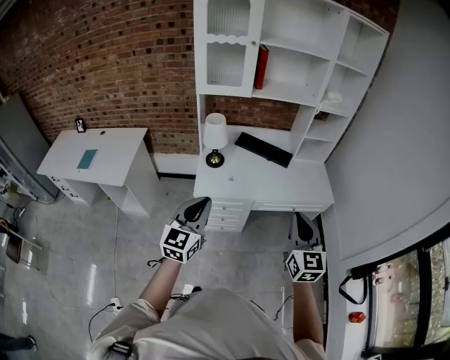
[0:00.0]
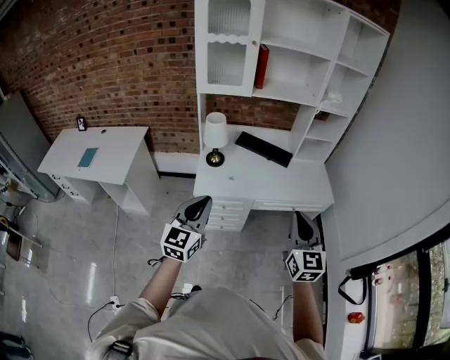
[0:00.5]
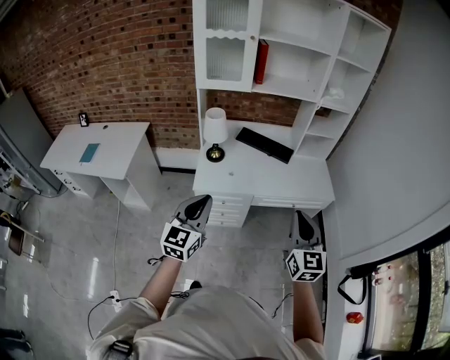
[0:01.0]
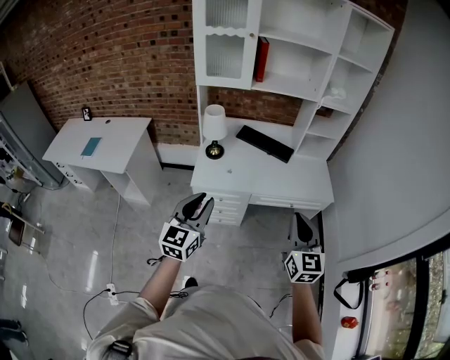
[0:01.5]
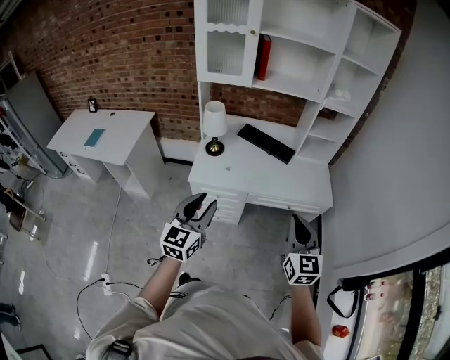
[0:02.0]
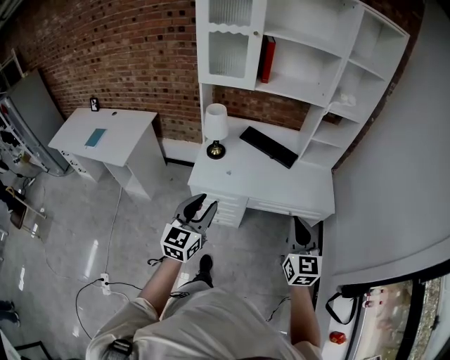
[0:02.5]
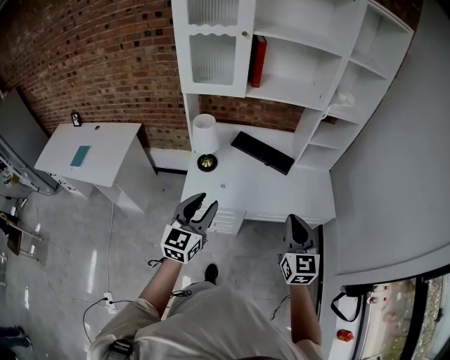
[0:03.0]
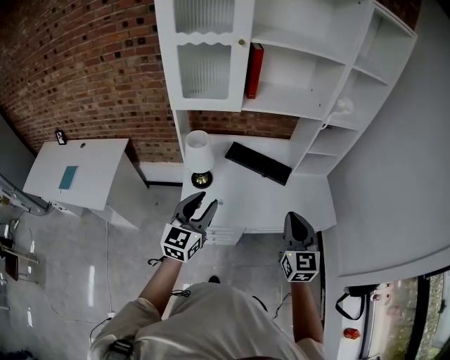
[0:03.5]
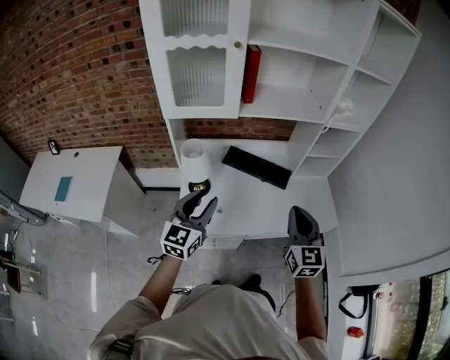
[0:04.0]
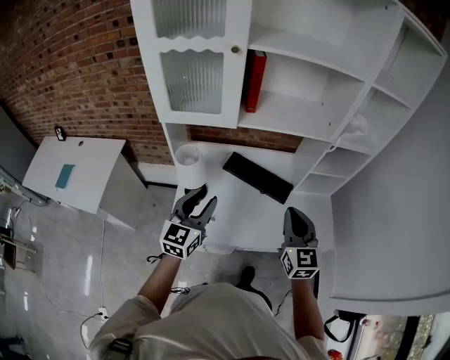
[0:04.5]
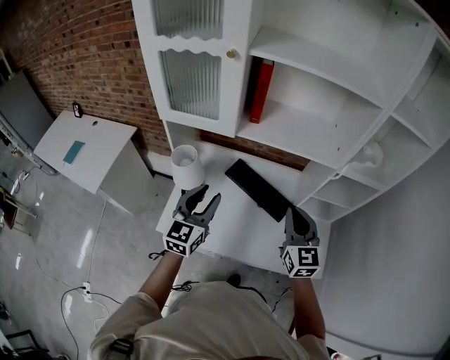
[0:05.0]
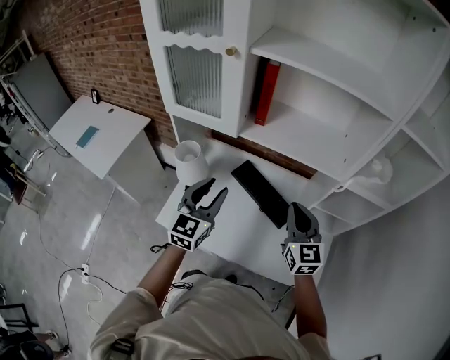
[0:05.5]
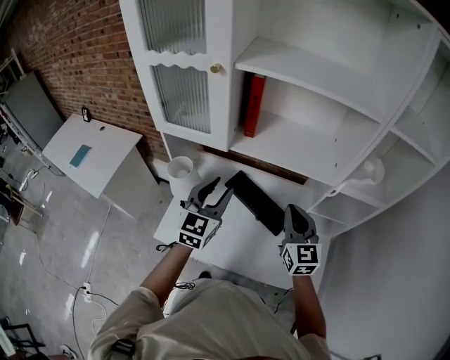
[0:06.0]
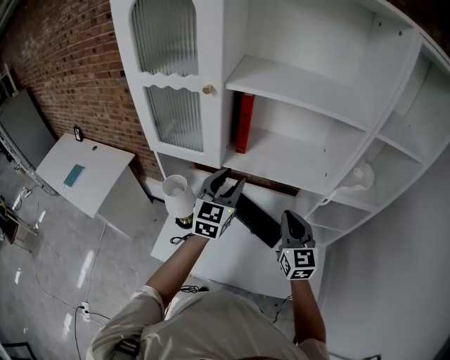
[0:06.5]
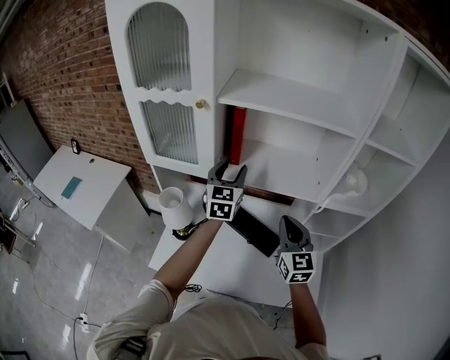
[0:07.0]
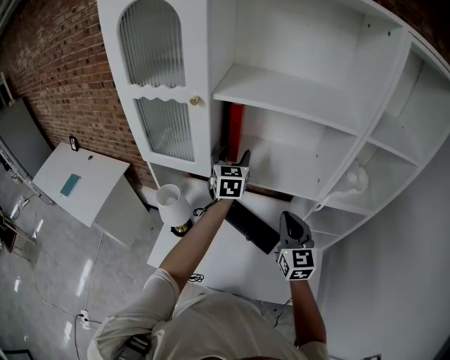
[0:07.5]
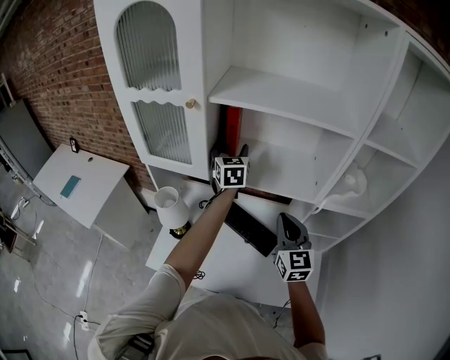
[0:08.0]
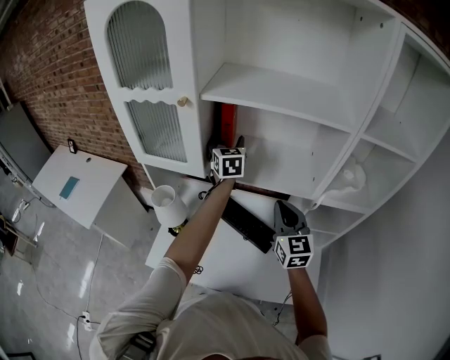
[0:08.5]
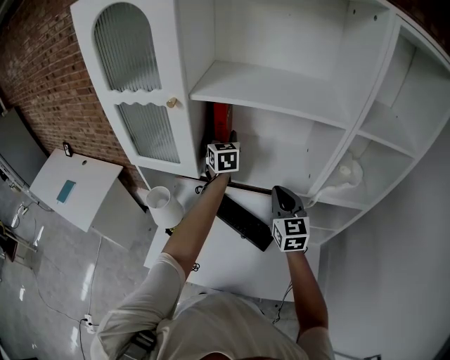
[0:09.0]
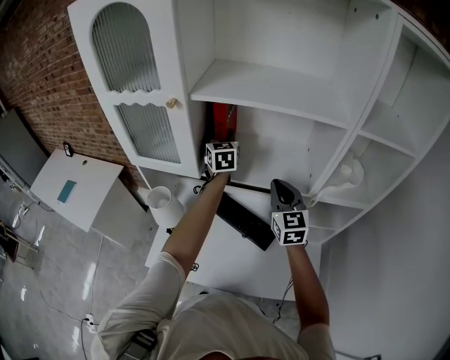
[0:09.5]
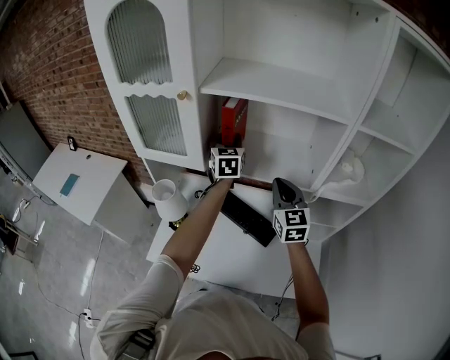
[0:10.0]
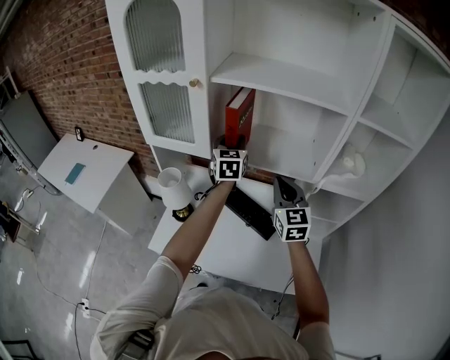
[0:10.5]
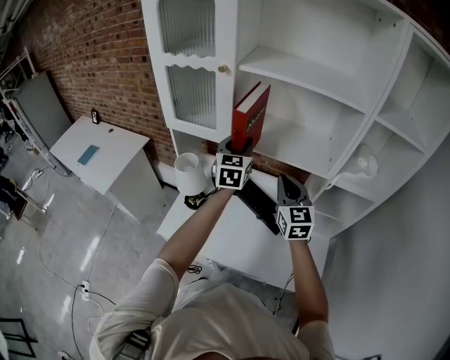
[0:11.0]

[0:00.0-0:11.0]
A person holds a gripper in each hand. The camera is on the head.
0:00.0 to 0:02.0: The grippers both shift to the right by roughly 10 cm. The left gripper opens.
0:02.0 to 0:03.5: Both grippers move forward, about 25 cm.
0:03.5 to 0:05.5: The right gripper goes some 30 cm forward, and changes its angle by approximately 20 degrees, while the left gripper shifts some 25 cm forward and to the right, and rotates about 20 degrees.
0:05.5 to 0:07.5: The right gripper moves about 5 cm, while the left gripper moves forward, approximately 25 cm, and opens up.
0:07.5 to 0:09.0: The grippers both shift forward by some 10 cm.
0:09.0 to 0:11.0: The left gripper is displaced backward by roughly 20 cm; the right gripper goes about 10 cm backward and to the left.

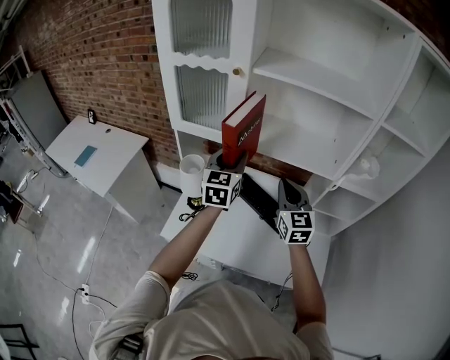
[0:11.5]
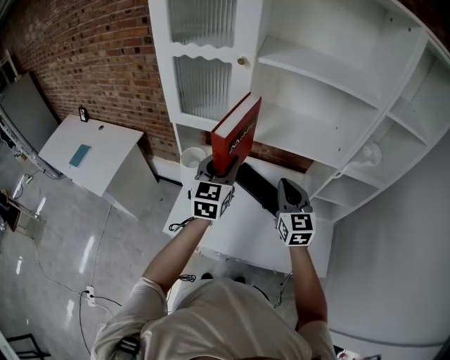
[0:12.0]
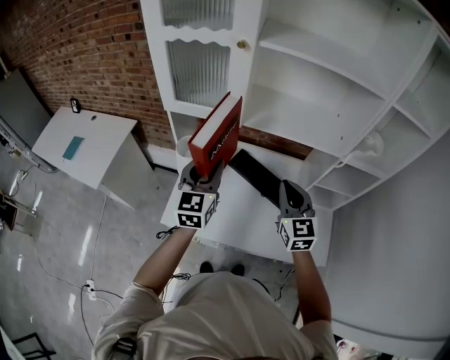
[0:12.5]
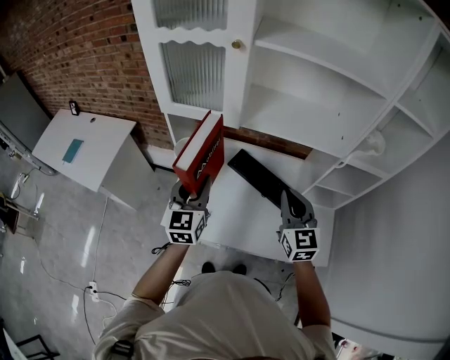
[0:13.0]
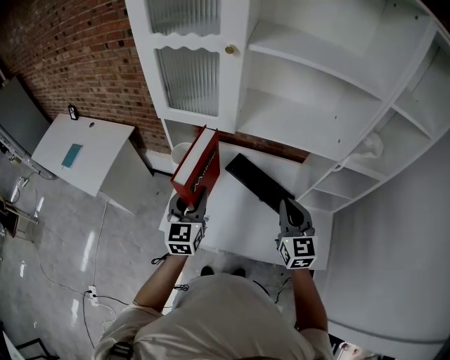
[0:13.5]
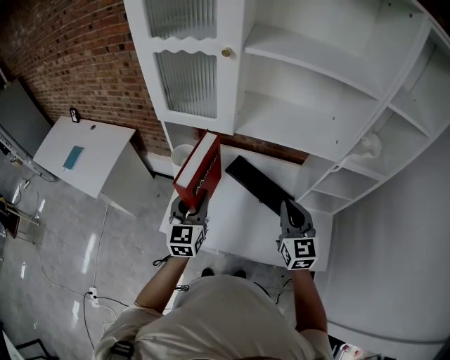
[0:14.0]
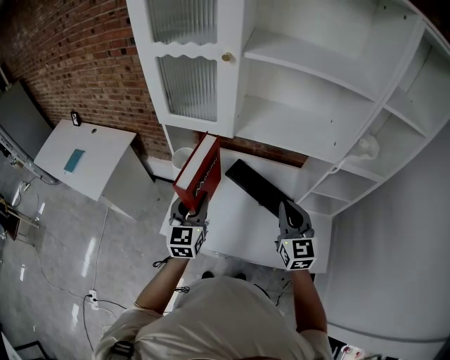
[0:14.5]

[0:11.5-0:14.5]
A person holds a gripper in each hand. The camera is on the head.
0:11.5 to 0:13.0: The right gripper heads backward, covering approximately 5 cm. The left gripper moves to the left, backward and downward, some 15 cm.
0:13.0 to 0:14.5: The grippers make only small movements.

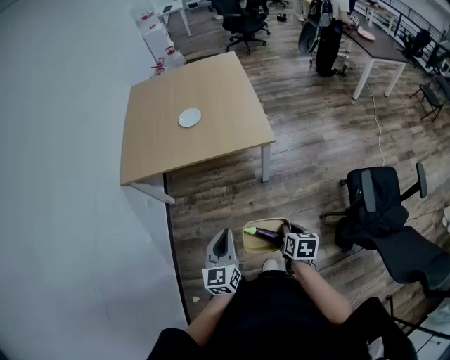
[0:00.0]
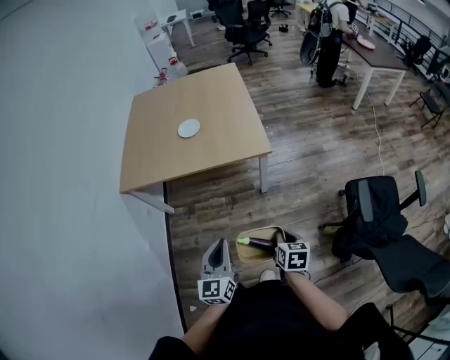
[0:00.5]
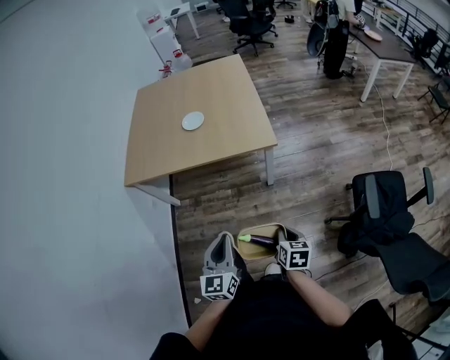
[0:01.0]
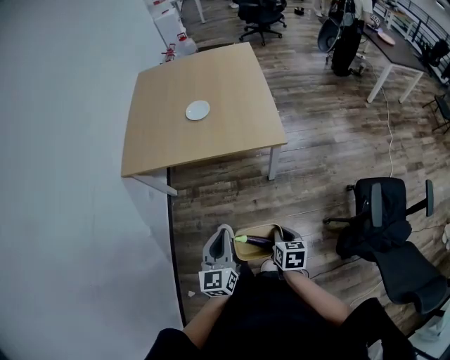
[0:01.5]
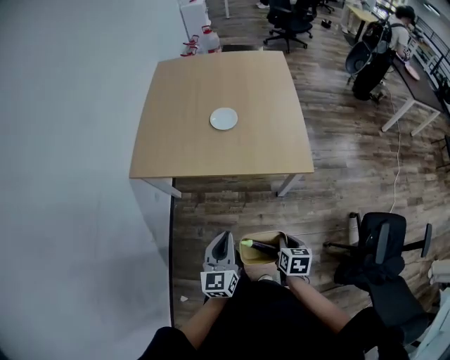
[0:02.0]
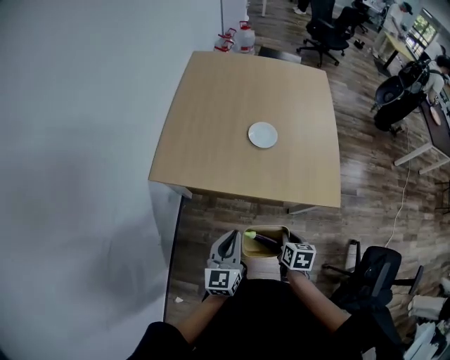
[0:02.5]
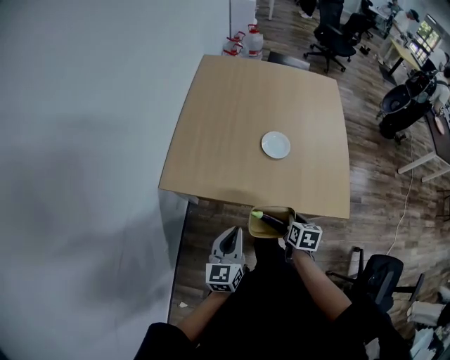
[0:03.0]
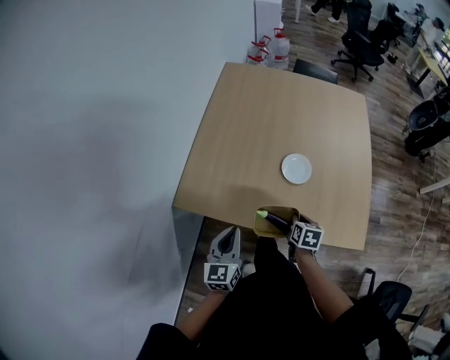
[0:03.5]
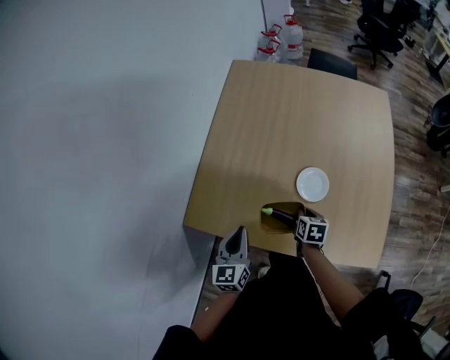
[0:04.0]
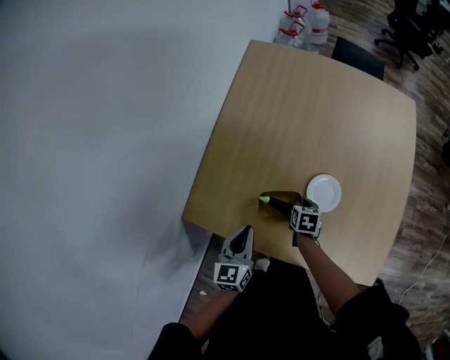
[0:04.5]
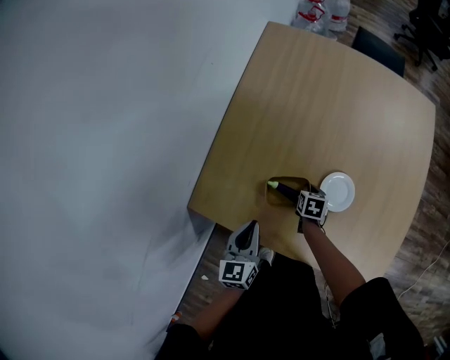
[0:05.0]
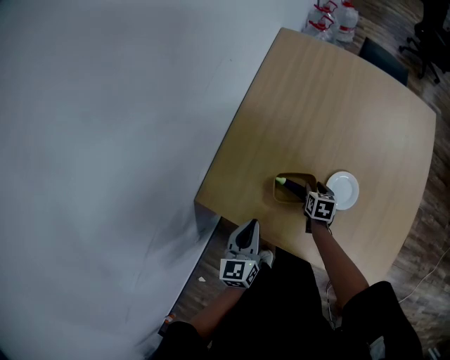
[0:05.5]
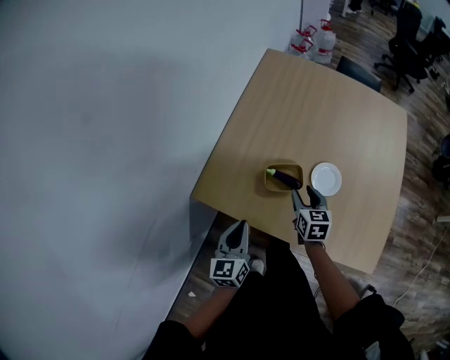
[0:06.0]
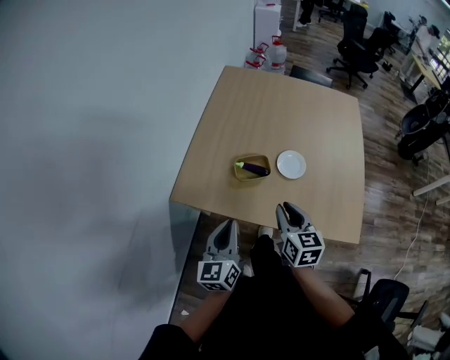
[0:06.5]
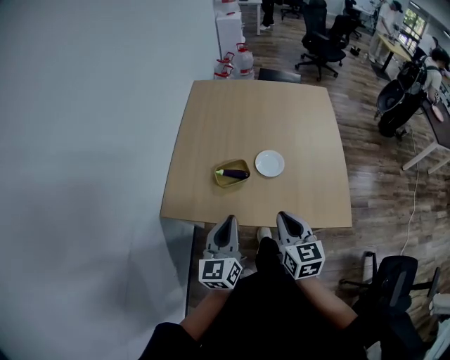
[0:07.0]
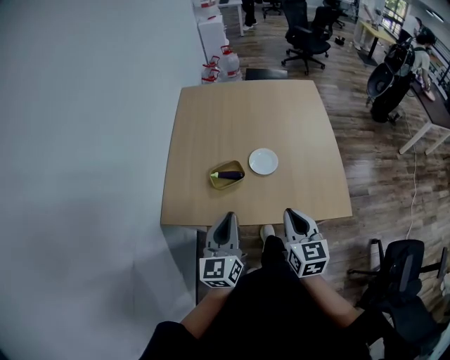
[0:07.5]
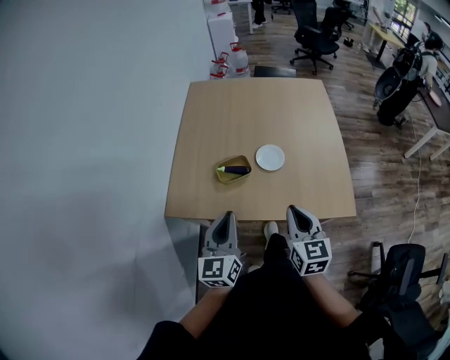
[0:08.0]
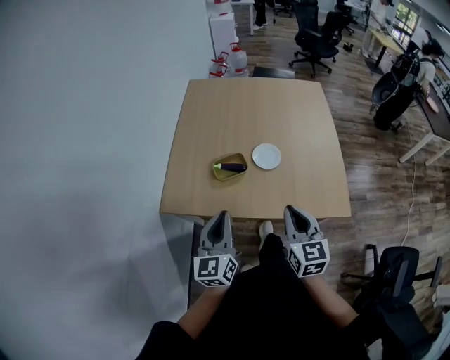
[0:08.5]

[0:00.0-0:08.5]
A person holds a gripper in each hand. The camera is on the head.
0:00.0 to 0:02.0: Both grippers travel together forward and to the left, some 20 cm.
0:02.0 to 0:04.0: The pair of grippers is taken forward and to the left, some 50 cm.
0:04.0 to 0:06.5: The left gripper travels backward and upward by about 15 cm. Meanwhile the right gripper goes roughly 25 cm upward, backward and to the left, turns by approximately 30 degrees, and opens and closes again.
0:06.5 to 0:08.5: The right gripper is displaced backward, to the right and upward by about 10 cm.

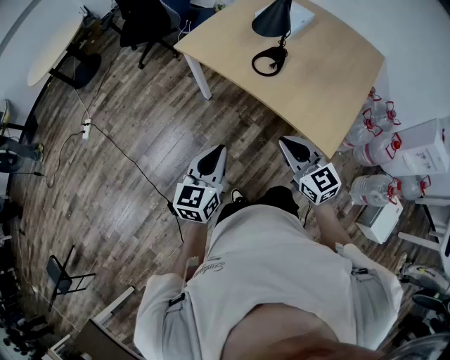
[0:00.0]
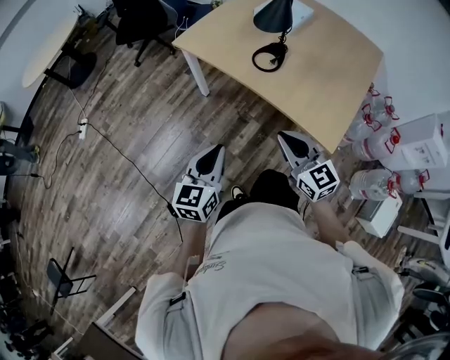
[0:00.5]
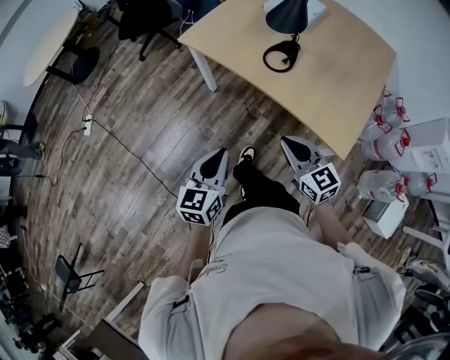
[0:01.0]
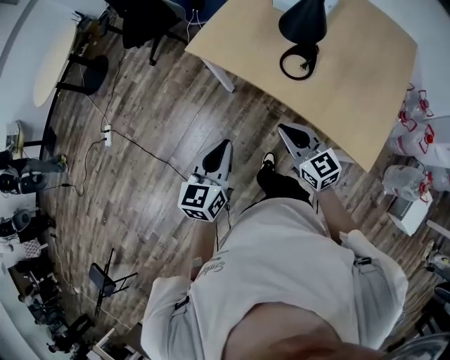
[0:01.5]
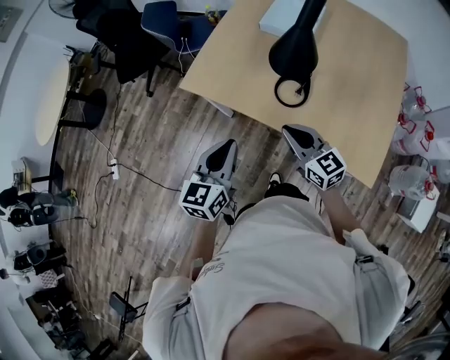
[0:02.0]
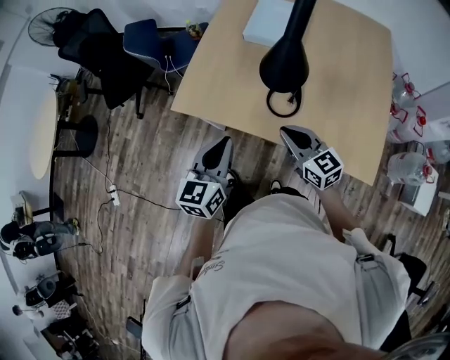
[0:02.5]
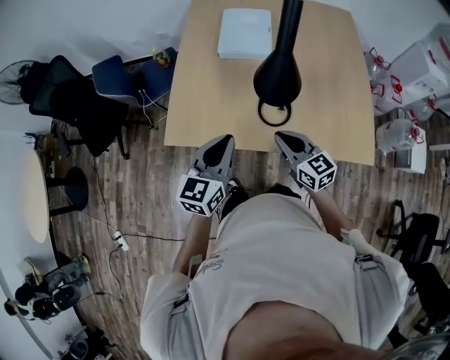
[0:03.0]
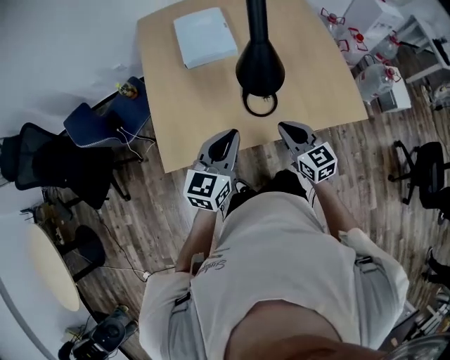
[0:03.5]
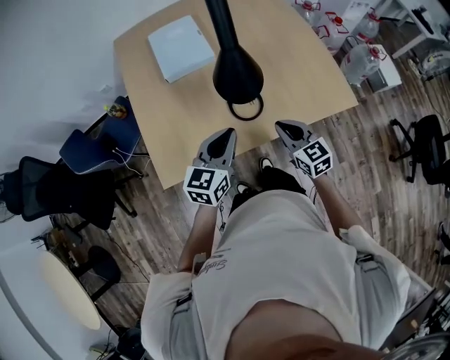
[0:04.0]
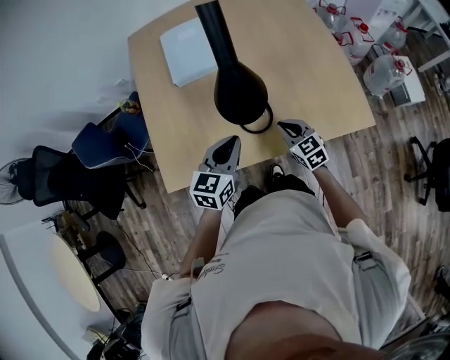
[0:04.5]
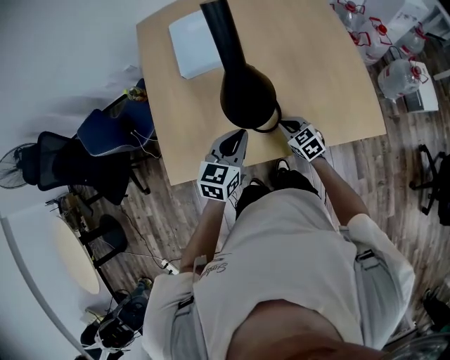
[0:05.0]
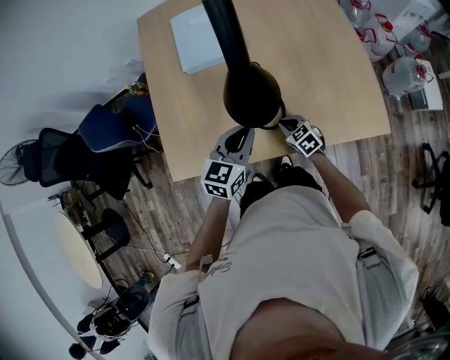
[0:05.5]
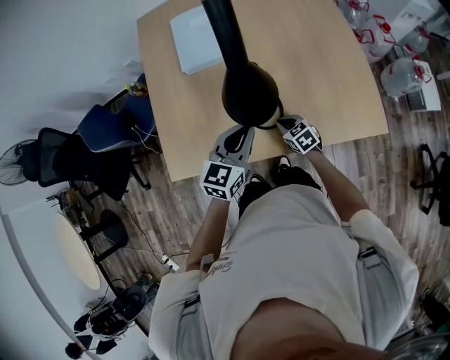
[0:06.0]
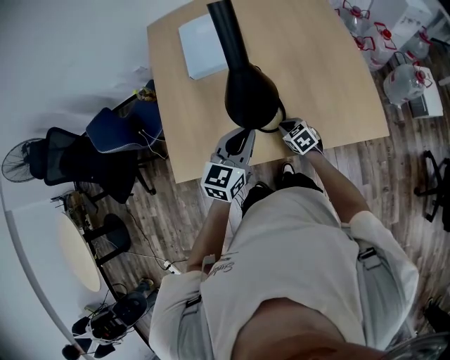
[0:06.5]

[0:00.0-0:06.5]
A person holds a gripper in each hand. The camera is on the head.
0:00.0 to 0:02.0: Both grippers move forward, some 30 cm.
0:02.0 to 0:04.5: The right gripper travels downward by approximately 15 cm, and swivels roughly 50 degrees. Meanwhile the left gripper changes place by some 20 cm, and changes its angle by some 50 degrees.
0:04.5 to 0:06.5: The right gripper is displaced downward by roughly 10 cm, and swivels about 20 degrees.
